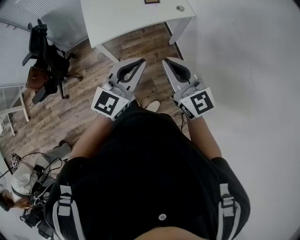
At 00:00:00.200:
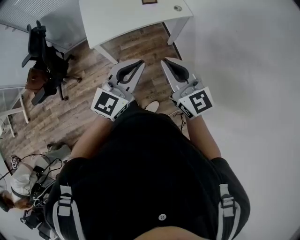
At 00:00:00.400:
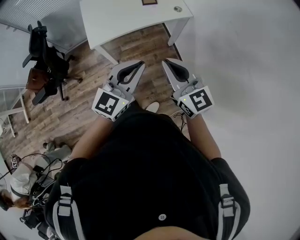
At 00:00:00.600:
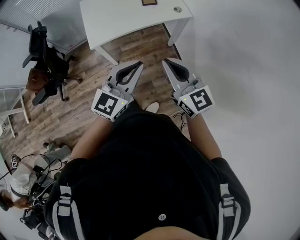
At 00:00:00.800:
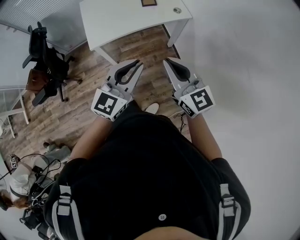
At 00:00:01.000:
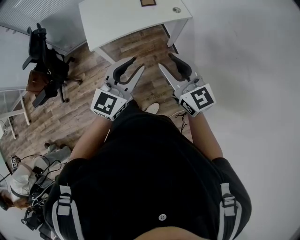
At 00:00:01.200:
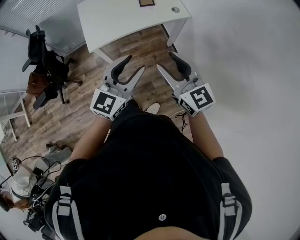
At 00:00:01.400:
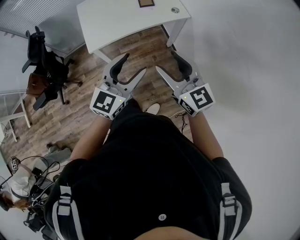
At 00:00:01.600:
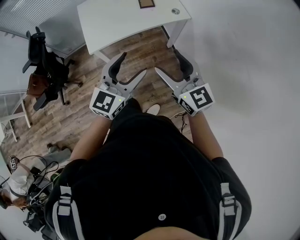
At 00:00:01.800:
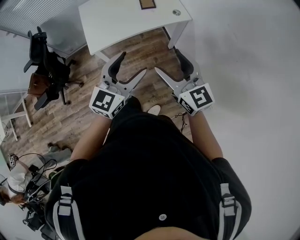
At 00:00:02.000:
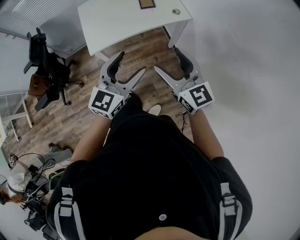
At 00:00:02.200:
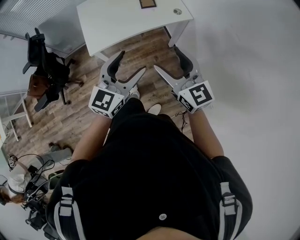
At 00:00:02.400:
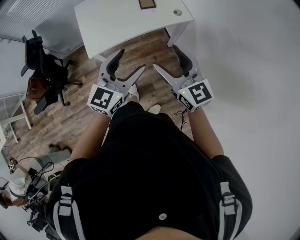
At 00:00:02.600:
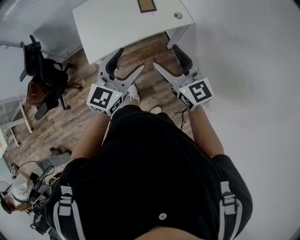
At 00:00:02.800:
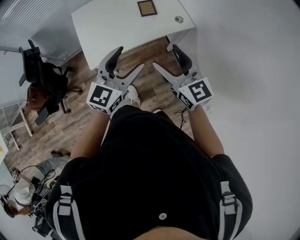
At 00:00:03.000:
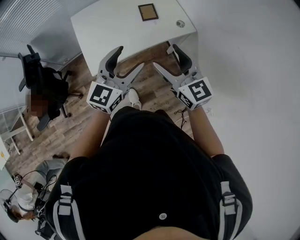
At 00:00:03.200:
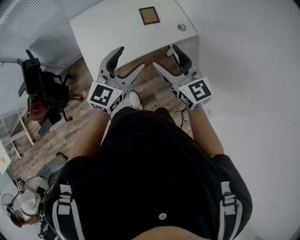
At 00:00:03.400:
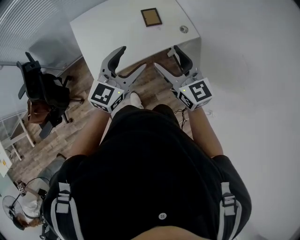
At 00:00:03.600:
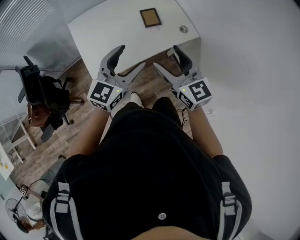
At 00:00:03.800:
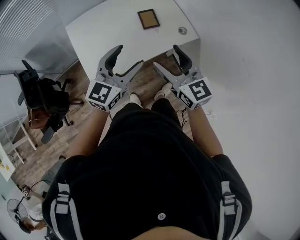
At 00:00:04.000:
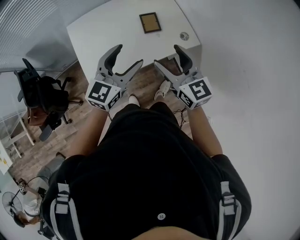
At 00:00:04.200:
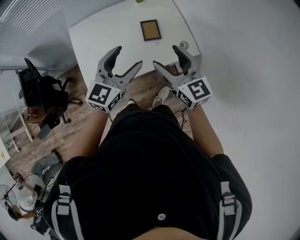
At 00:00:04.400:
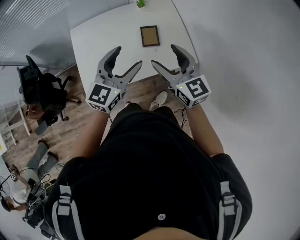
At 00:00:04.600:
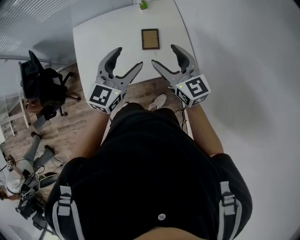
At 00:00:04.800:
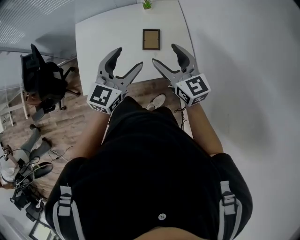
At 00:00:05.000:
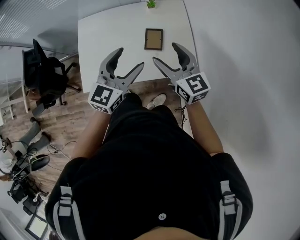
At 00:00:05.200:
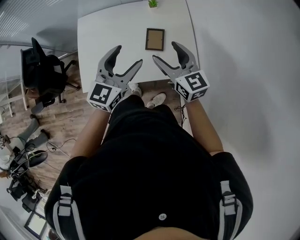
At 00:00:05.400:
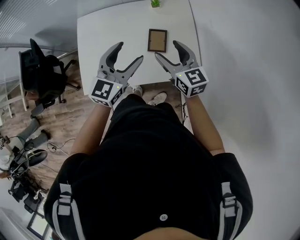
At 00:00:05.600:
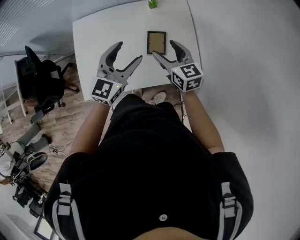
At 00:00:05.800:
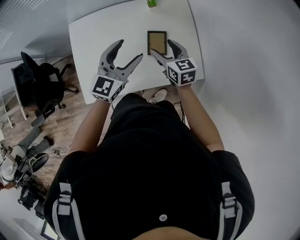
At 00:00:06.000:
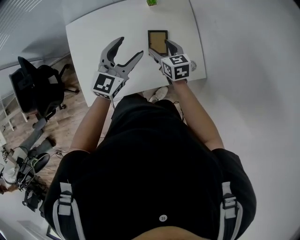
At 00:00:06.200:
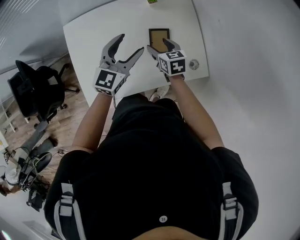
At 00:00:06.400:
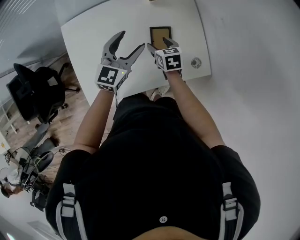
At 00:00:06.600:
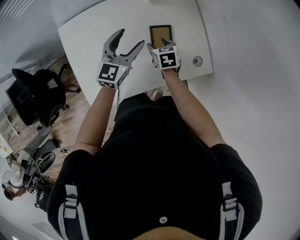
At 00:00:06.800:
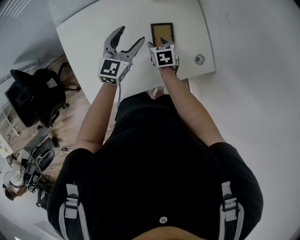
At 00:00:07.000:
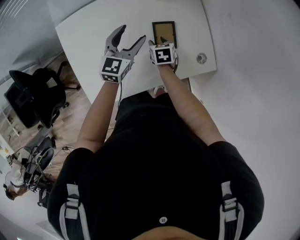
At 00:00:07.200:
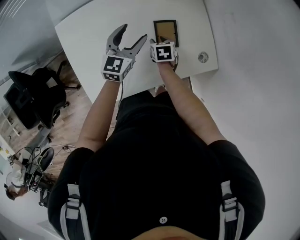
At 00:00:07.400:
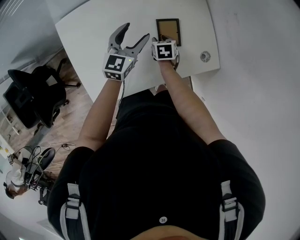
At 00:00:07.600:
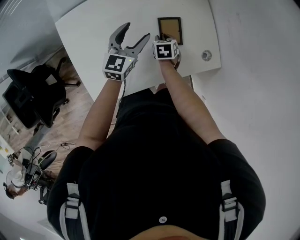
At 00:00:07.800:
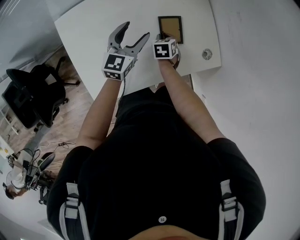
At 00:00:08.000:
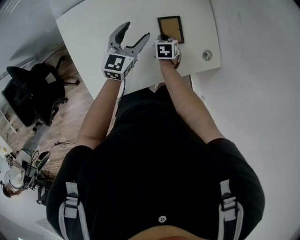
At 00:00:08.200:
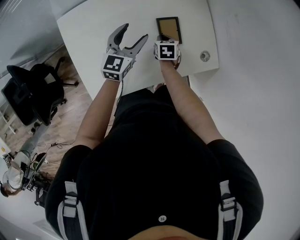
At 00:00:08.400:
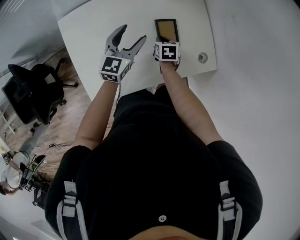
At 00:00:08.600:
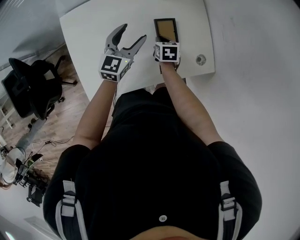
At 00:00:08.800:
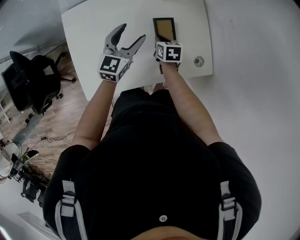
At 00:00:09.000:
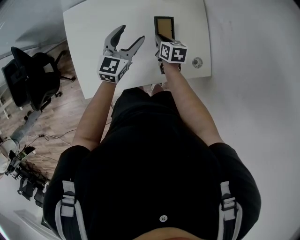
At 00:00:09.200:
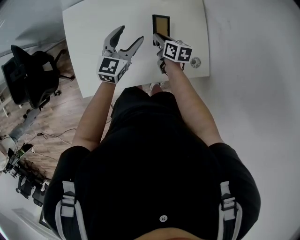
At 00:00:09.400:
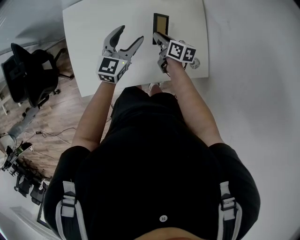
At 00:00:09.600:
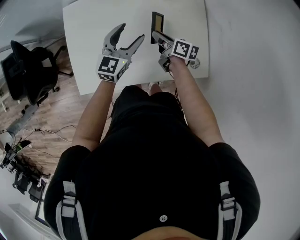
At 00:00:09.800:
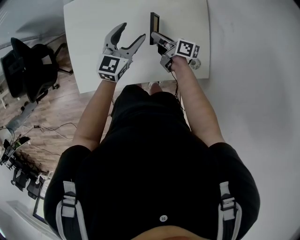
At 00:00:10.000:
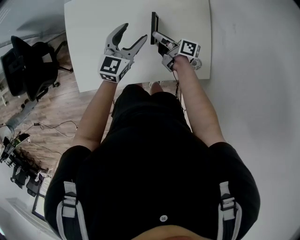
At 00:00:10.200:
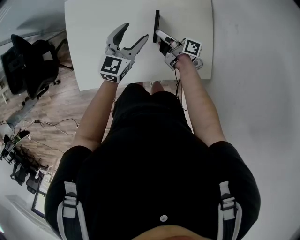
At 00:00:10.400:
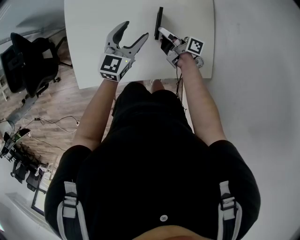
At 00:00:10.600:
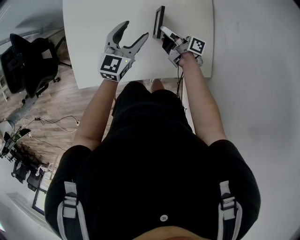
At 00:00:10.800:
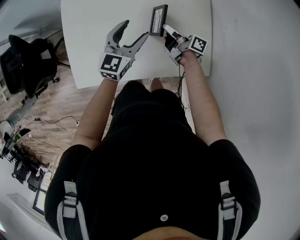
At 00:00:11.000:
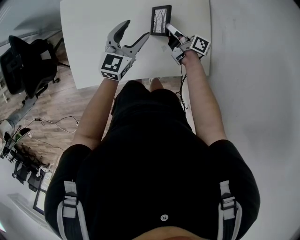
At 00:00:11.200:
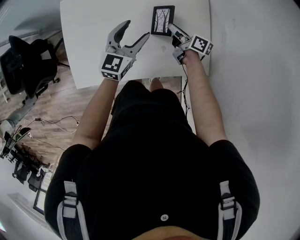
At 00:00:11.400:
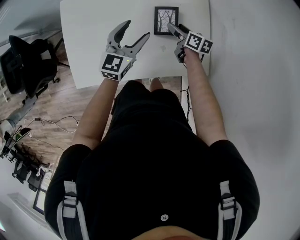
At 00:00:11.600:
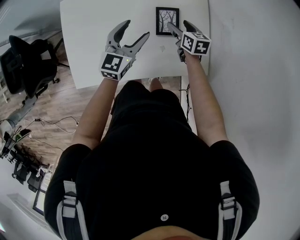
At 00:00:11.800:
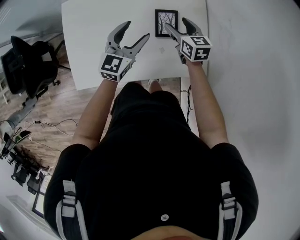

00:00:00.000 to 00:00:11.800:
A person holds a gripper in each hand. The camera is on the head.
00:00:00.000 to 00:00:01.400: The right gripper opens. The left gripper opens its fingers.
00:00:01.400 to 00:00:03.000: The grippers both shift forward by approximately 20 cm.
00:00:03.000 to 00:00:04.400: Both grippers move forward, roughly 20 cm.
00:00:04.400 to 00:00:06.000: The left gripper shifts approximately 20 cm forward and downward, while the right gripper travels downward and forward by approximately 30 cm, and changes its angle by about 30 degrees.
00:00:06.000 to 00:00:07.400: The left gripper heads downward and forward, covering about 15 cm; the right gripper shifts approximately 20 cm downward, swivels approximately 30 degrees, and closes its fingers.
00:00:07.400 to 00:00:08.800: The right gripper heads upward, covering some 5 cm, and closes.
00:00:08.800 to 00:00:10.400: The right gripper points its fingers roughly 50 degrees further upward.
00:00:10.400 to 00:00:11.800: The right gripper goes some 10 cm to the right and upward, rolls counterclockwise, seen from behind, by about 60 degrees, and opens up.

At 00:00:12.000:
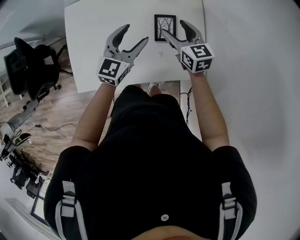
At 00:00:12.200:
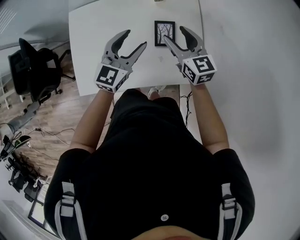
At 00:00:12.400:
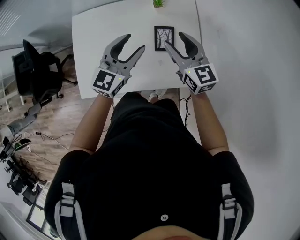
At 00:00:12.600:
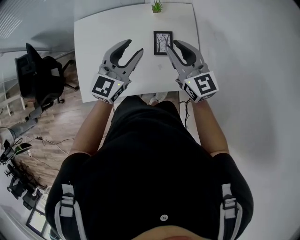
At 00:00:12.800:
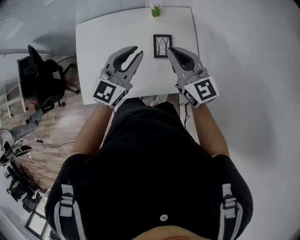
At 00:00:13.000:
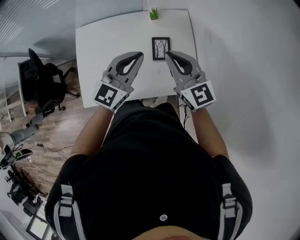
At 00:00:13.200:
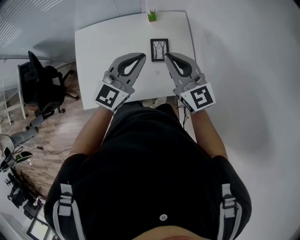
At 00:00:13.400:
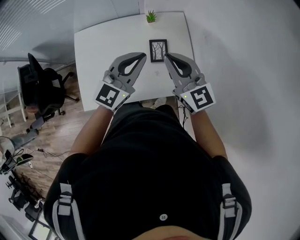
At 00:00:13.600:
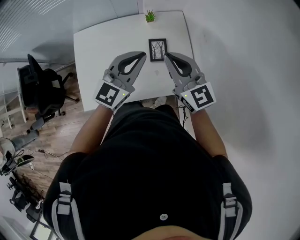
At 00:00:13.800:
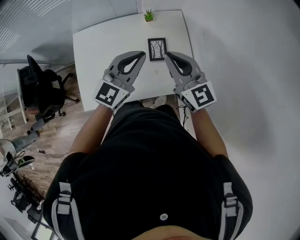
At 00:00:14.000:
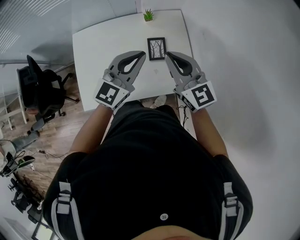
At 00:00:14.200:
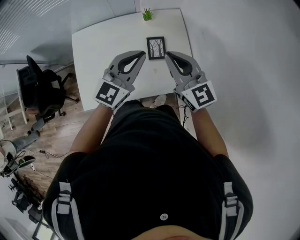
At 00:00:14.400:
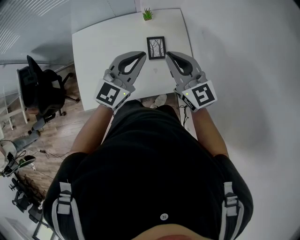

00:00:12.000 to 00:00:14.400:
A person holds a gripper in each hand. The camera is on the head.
00:00:12.000 to 00:00:13.200: The left gripper shifts some 15 cm upward, and closes its fingers, while the right gripper heads upward and backward, covering approximately 25 cm, turns by some 30 degrees, and closes.
00:00:13.200 to 00:00:14.400: The grippers stay close to where they were, moving slightly.

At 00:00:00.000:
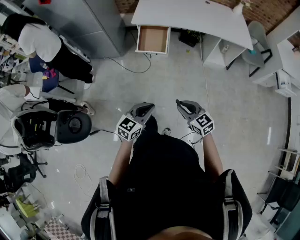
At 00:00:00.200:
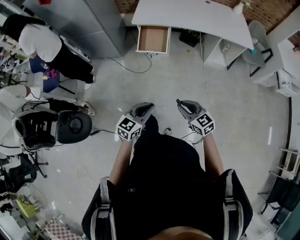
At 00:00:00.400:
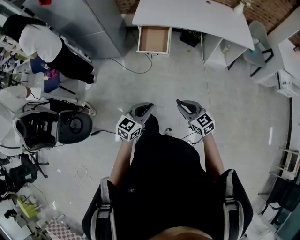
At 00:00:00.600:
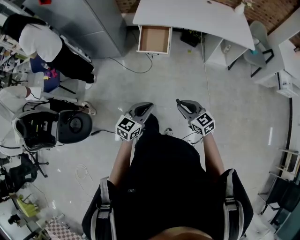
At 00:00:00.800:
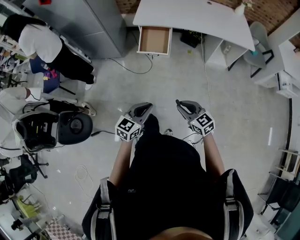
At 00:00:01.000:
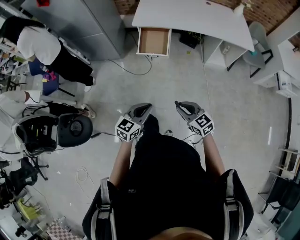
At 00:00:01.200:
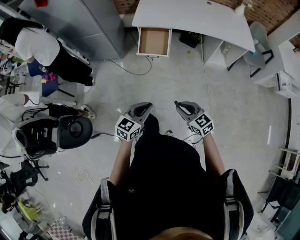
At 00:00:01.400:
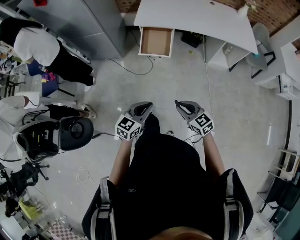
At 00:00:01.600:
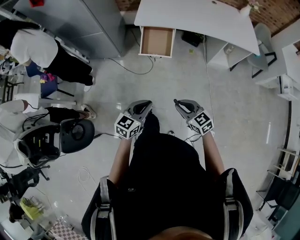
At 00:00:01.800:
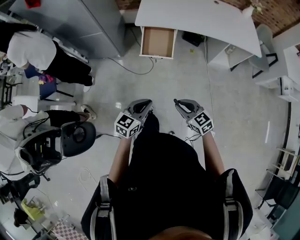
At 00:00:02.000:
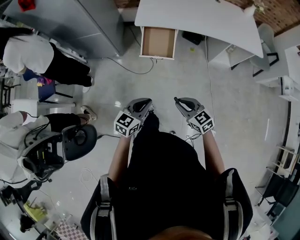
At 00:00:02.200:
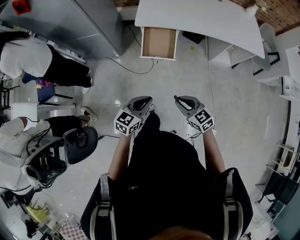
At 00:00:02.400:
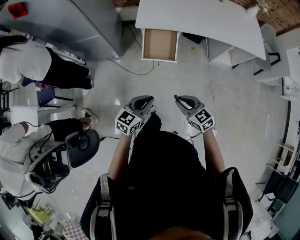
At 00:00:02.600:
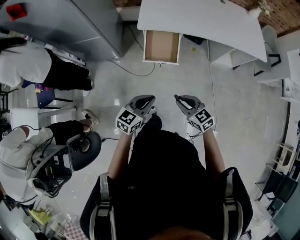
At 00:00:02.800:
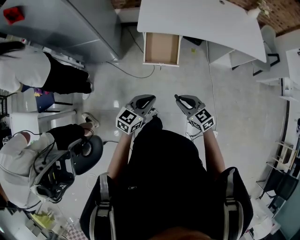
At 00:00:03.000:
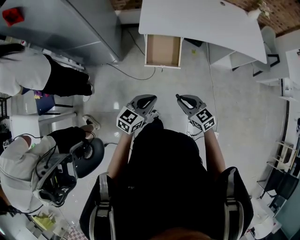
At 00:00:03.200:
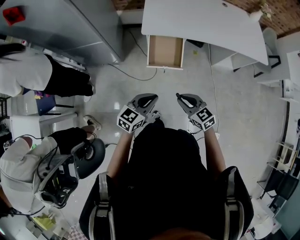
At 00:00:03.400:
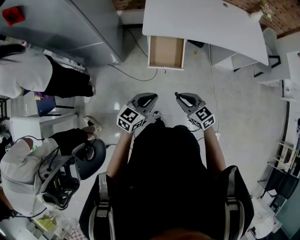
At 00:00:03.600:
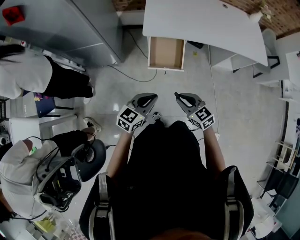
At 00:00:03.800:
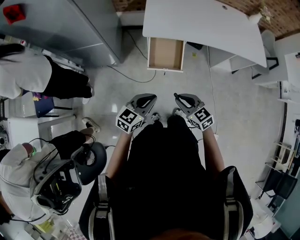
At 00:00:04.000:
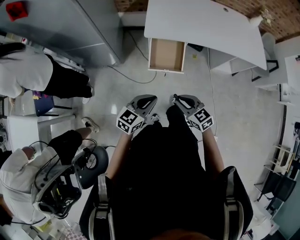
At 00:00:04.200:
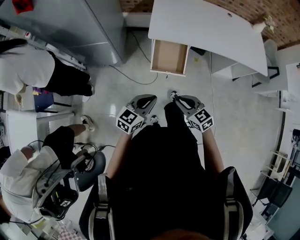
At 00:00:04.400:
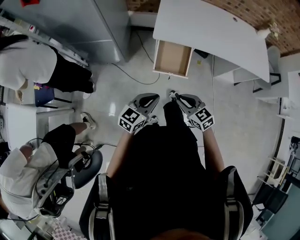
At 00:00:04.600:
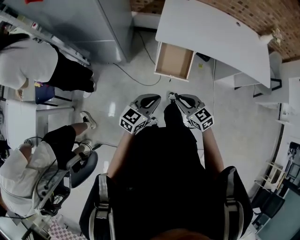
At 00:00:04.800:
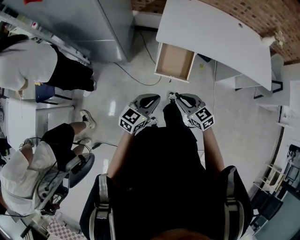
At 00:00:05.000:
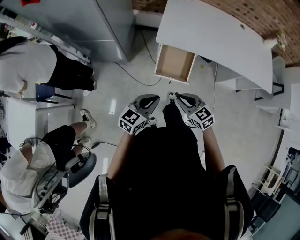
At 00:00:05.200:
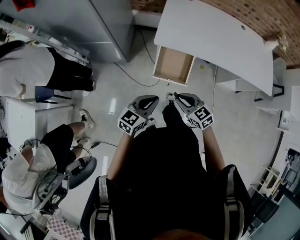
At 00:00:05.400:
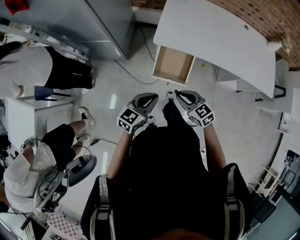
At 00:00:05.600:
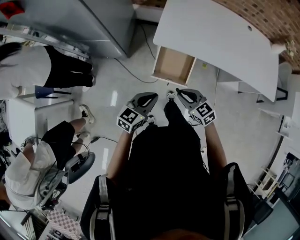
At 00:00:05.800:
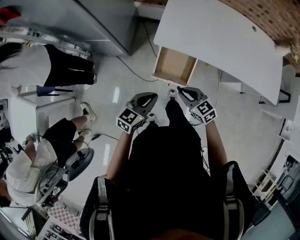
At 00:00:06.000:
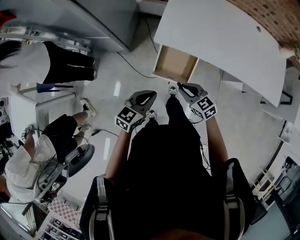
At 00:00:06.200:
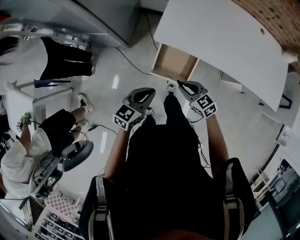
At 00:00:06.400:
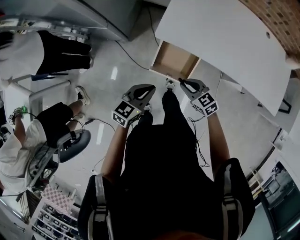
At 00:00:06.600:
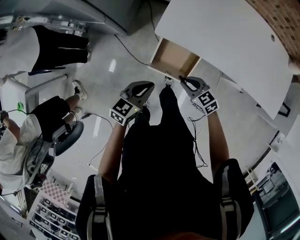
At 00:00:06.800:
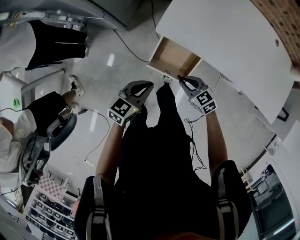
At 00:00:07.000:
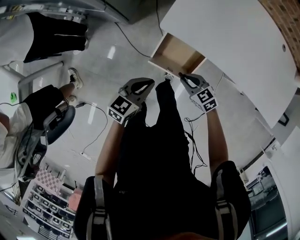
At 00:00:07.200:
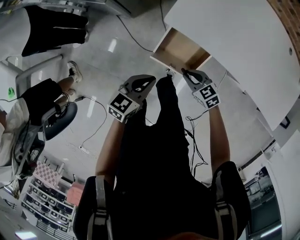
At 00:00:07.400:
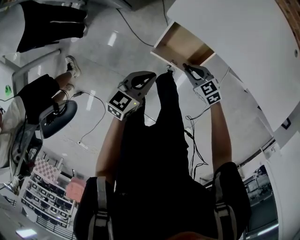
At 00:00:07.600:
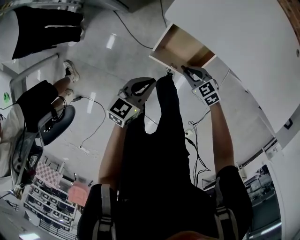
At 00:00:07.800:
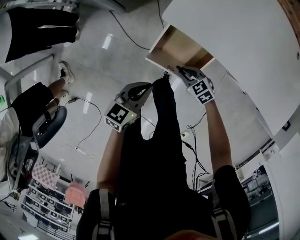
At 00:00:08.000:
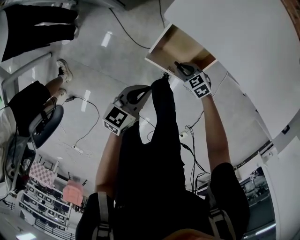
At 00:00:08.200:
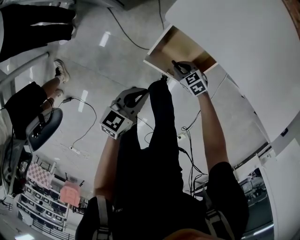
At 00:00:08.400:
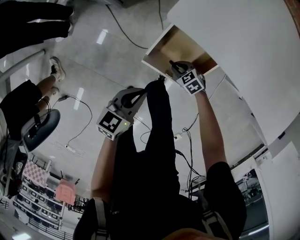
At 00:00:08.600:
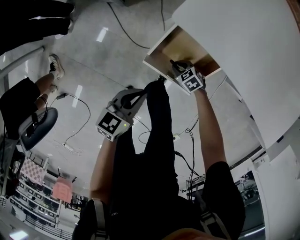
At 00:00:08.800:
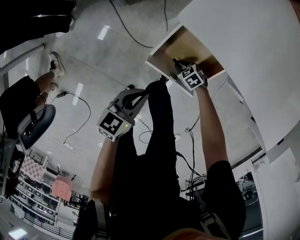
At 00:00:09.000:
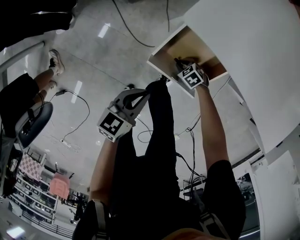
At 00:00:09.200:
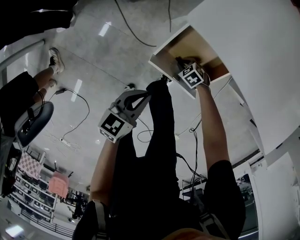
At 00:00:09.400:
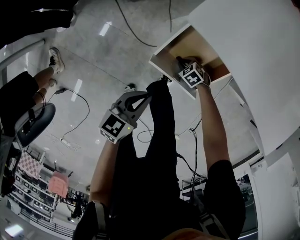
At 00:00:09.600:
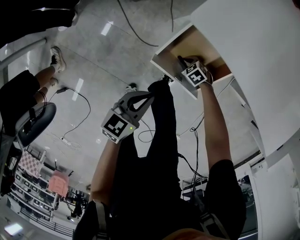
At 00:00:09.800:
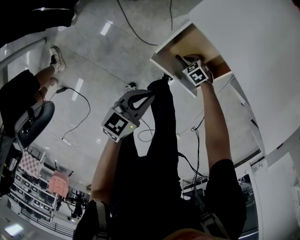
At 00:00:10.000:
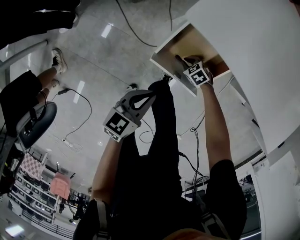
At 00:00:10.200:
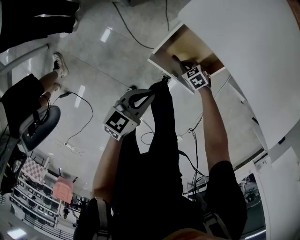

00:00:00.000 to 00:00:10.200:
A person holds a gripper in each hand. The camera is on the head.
00:00:00.000 to 00:00:01.400: Both grippers travel together forward, some 5 cm.
00:00:01.400 to 00:00:03.000: The right gripper is displaced forward and to the left by about 25 cm. The left gripper moves forward, roughly 20 cm.
00:00:03.000 to 00:00:04.400: The grippers both shift to the left and forward by roughly 10 cm.
00:00:04.400 to 00:00:05.800: The two grippers go some 15 cm forward and to the right.
00:00:05.800 to 00:00:07.200: The grippers both shift downward and forward by about 15 cm.
00:00:07.200 to 00:00:08.800: The left gripper heads downward, covering about 15 cm, while the right gripper moves downward, about 30 cm, and rotates approximately 20 degrees.
00:00:08.800 to 00:00:10.200: There are only small adjustments of the grippers.
